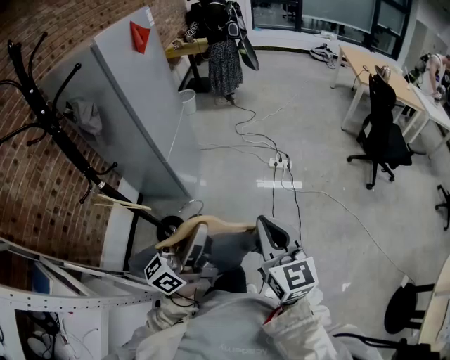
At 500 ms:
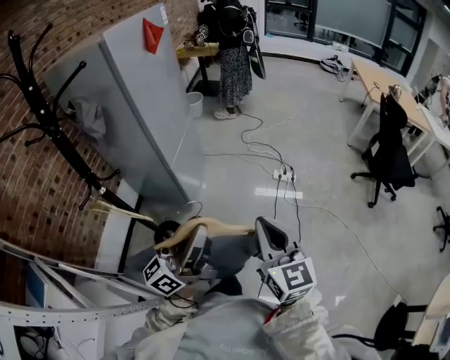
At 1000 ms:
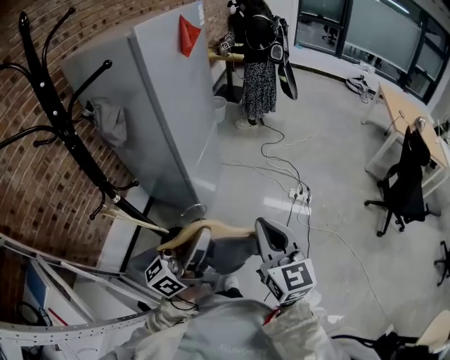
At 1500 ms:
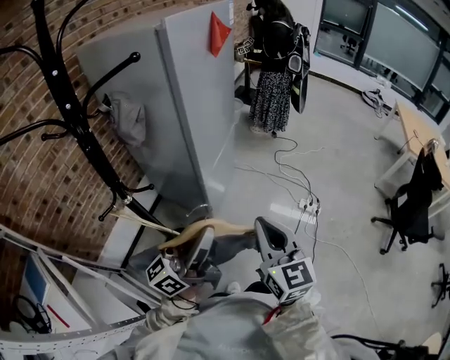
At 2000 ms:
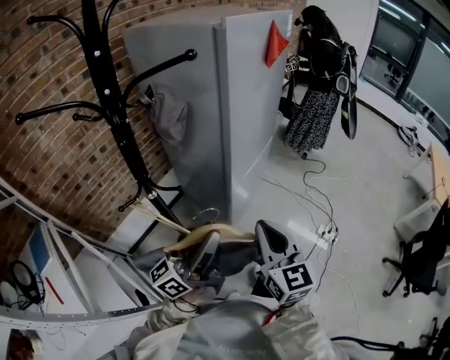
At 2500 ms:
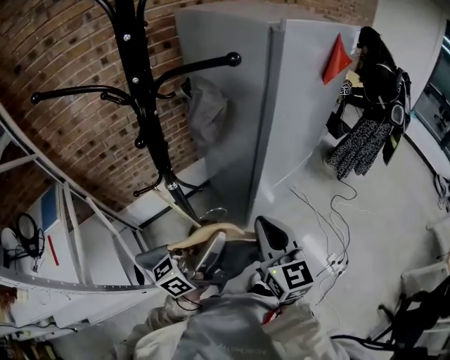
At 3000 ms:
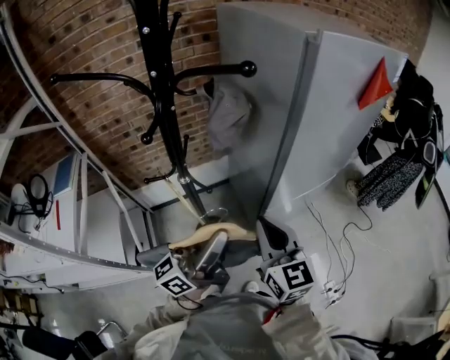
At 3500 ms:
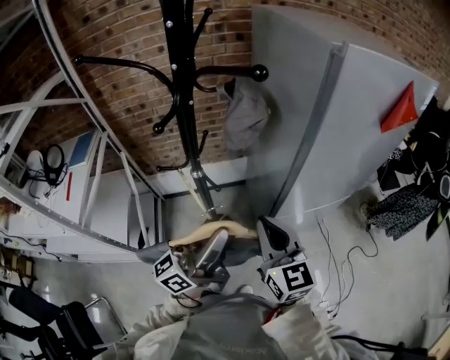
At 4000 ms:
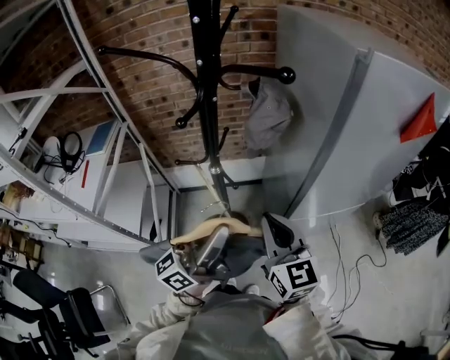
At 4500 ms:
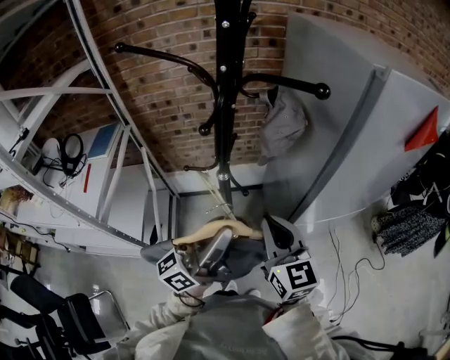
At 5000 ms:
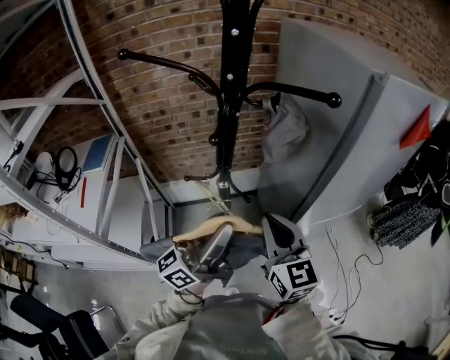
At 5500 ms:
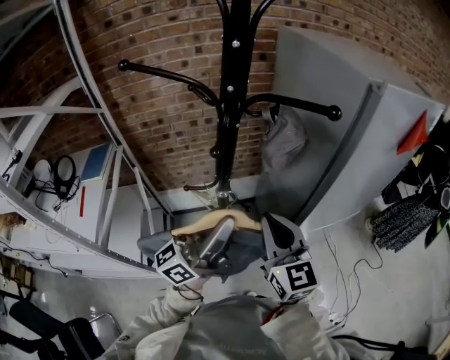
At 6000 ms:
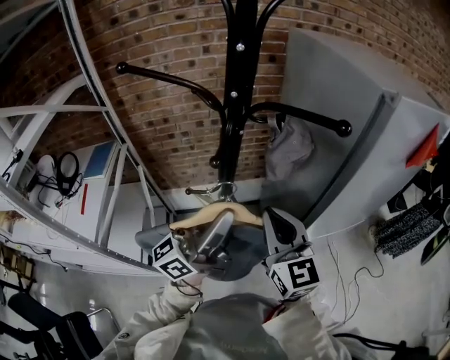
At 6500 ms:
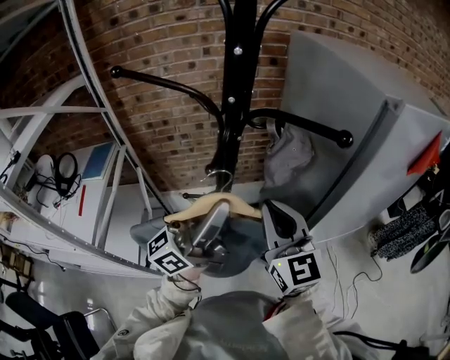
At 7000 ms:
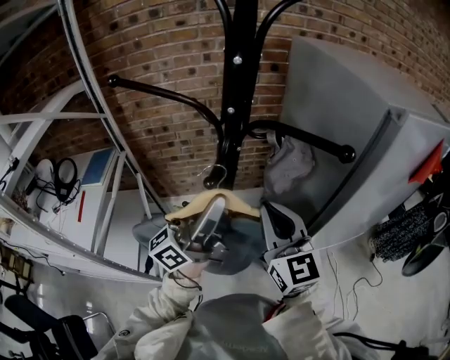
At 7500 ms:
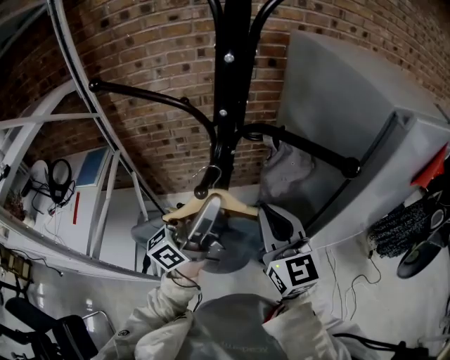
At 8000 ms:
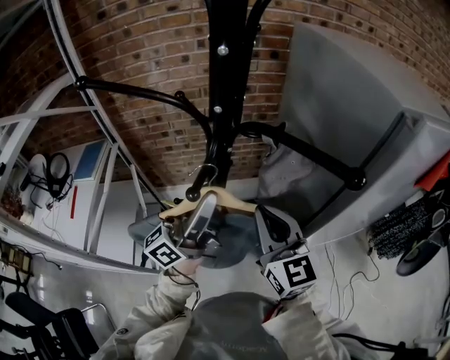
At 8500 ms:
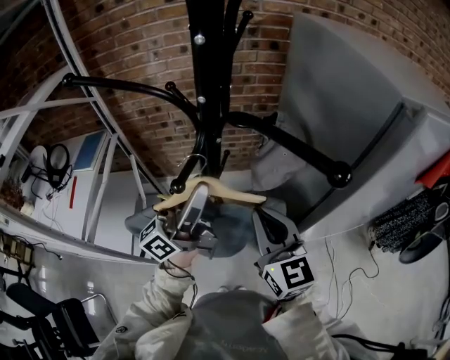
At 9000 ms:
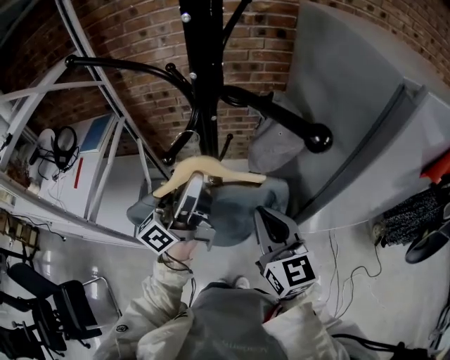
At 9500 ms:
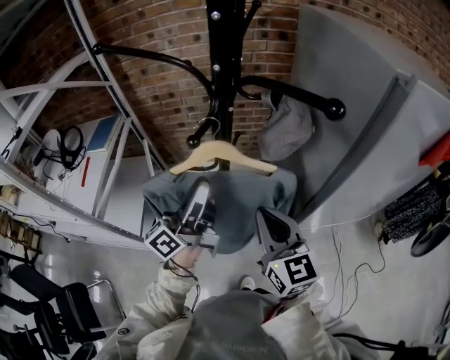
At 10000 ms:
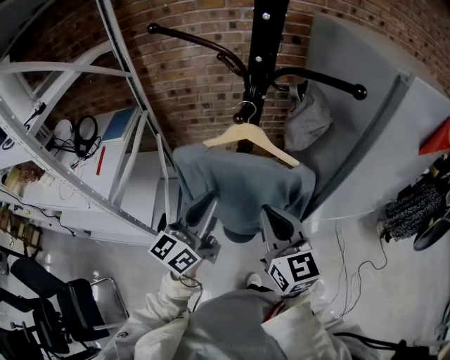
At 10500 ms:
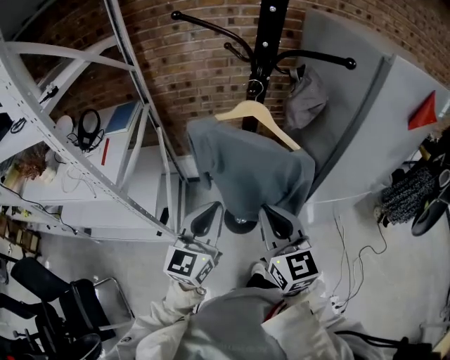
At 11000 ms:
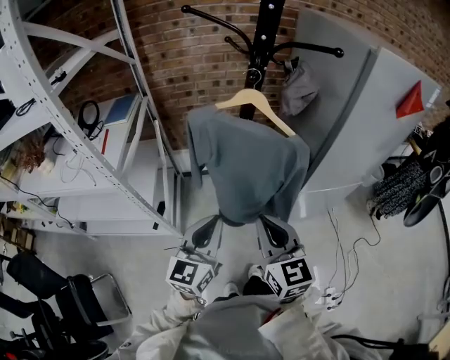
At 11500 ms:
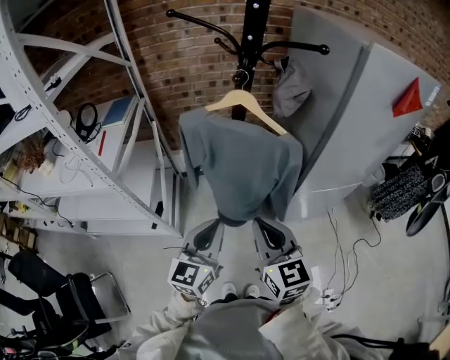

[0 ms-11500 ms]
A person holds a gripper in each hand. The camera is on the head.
0 ms to 2000 ms: The left gripper moves about 30 cm, and rotates some 30 degrees. The right gripper ends up approximately 40 cm from where it was, and rotates approximately 30 degrees.
2000 ms to 4000 ms: The right gripper ends up about 15 cm from where it was, and changes its angle by about 50 degrees, while the left gripper moves about 10 cm, and swivels roughly 50 degrees.
4000 ms to 6000 ms: The left gripper heads forward, to the left and upward, covering about 10 cm. Meanwhile the right gripper moves to the left, forward and upward, approximately 10 cm.
6000 ms to 7500 ms: Both grippers move forward, approximately 5 cm.
7500 ms to 9500 ms: The left gripper is displaced downward by approximately 5 cm; the right gripper is displaced backward and downward by some 10 cm.
9500 ms to 11500 ms: The two grippers go some 25 cm backward. The left gripper rotates some 50 degrees, and closes.

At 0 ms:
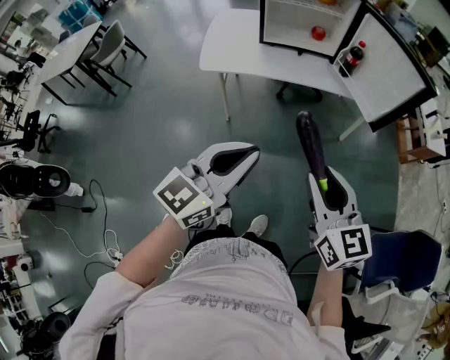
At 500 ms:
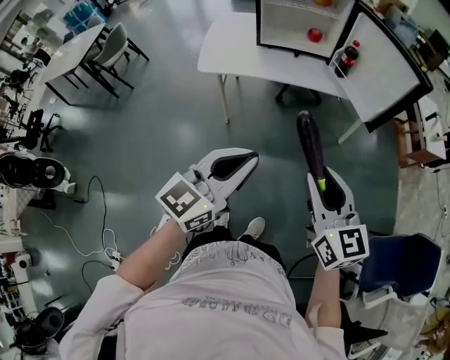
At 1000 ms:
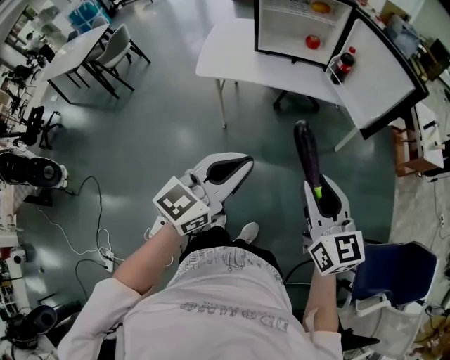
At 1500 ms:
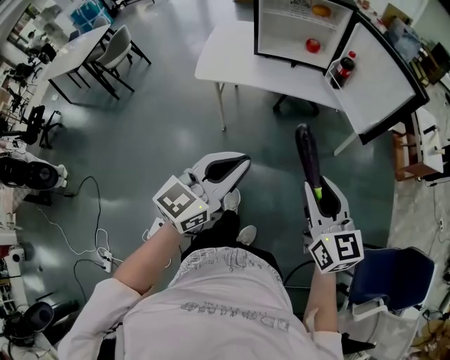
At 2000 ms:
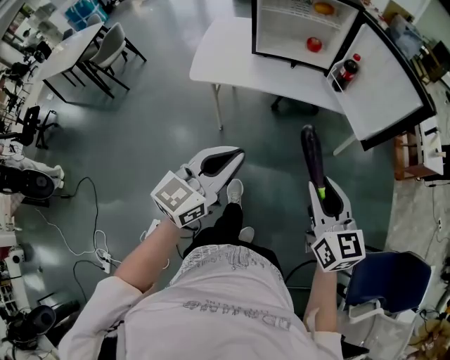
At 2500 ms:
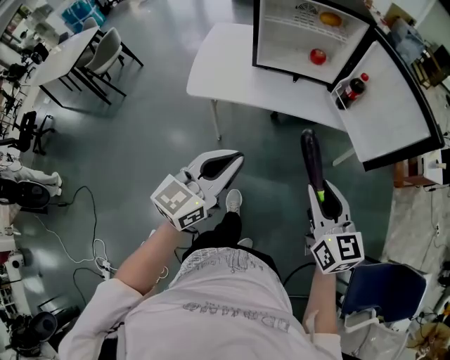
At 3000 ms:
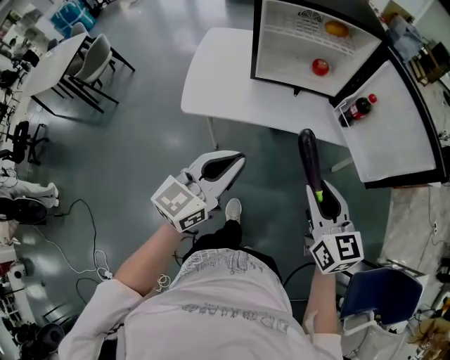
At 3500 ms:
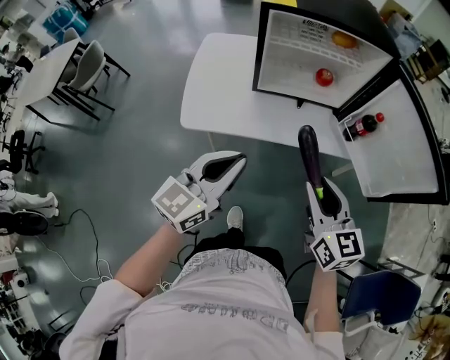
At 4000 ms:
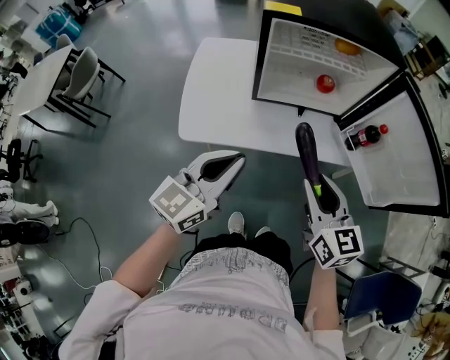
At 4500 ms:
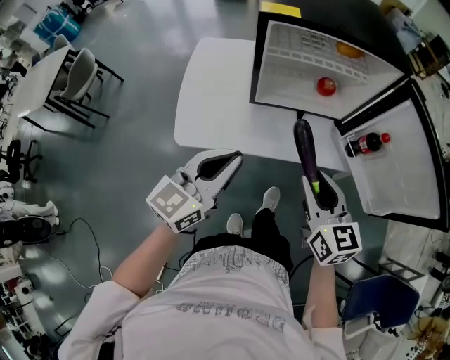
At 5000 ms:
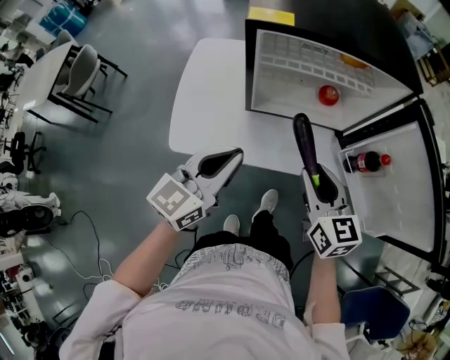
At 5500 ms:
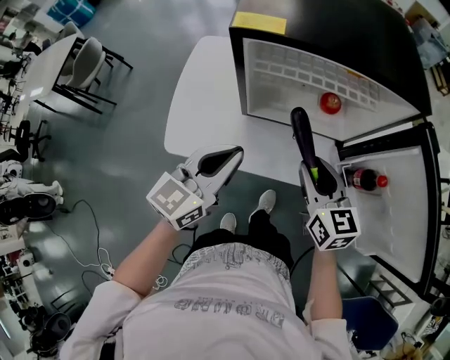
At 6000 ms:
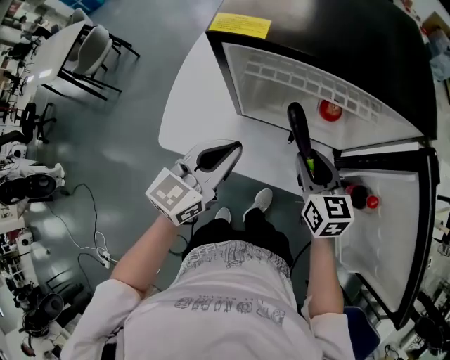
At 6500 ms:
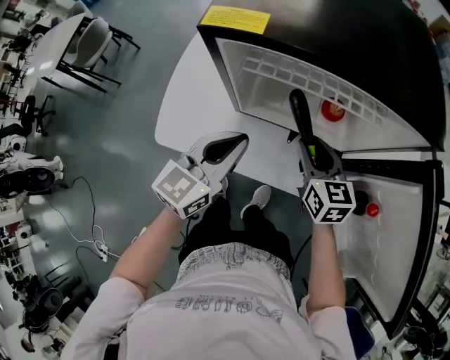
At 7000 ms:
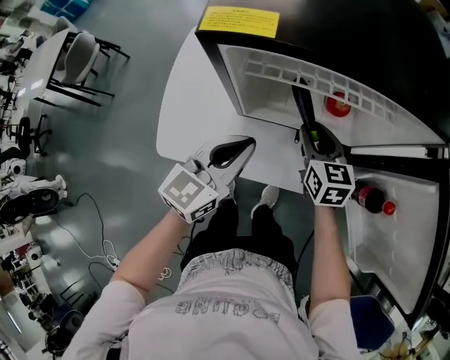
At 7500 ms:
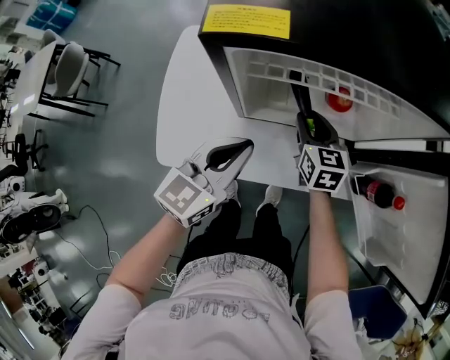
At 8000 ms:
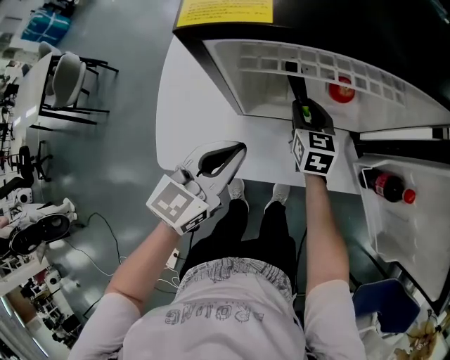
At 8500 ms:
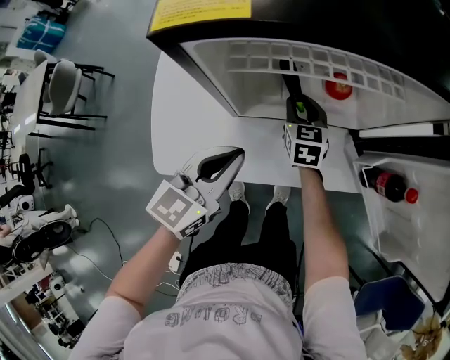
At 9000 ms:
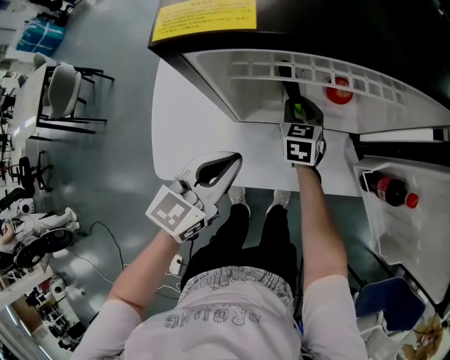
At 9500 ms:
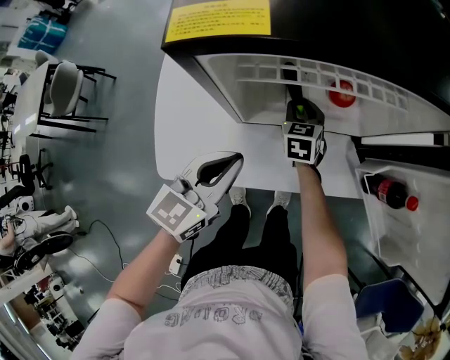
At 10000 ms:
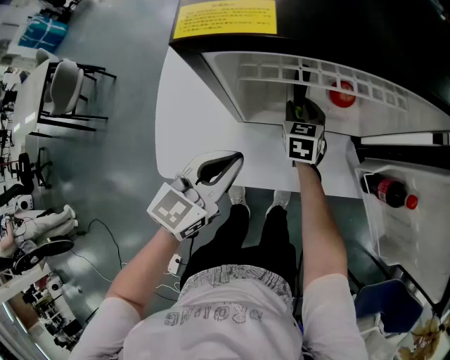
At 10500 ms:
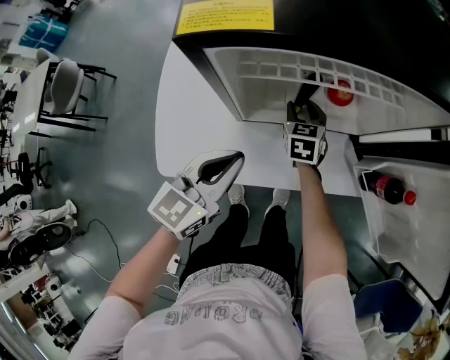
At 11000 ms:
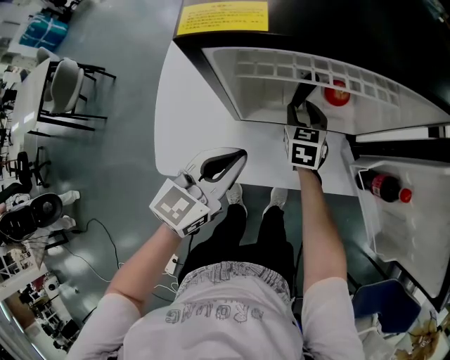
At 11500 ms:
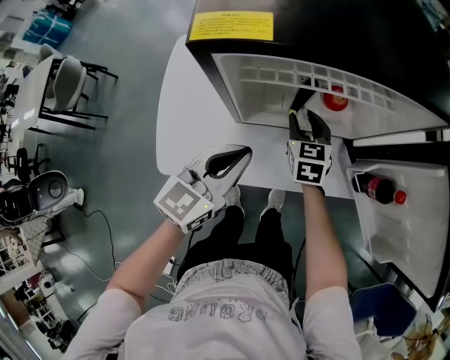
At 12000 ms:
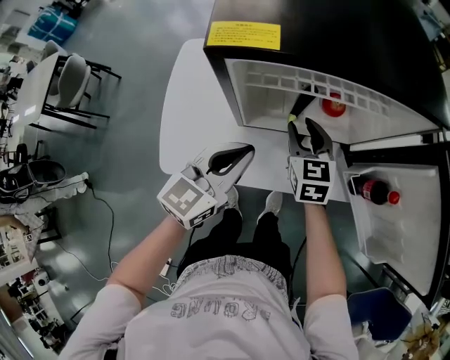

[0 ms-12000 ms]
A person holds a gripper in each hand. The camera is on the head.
0 ms to 2000 ms: The right gripper shifts some 10 cm to the right and forward. Meanwhile the left gripper shifts some 5 cm forward.
2000 ms to 4000 ms: Both grippers travel together forward and to the left, some 30 cm.
4000 ms to 6000 ms: The left gripper heads forward and to the right, covering about 20 cm. Meanwhile the right gripper moves forward and downward, approximately 25 cm.
6000 ms to 8000 ms: The right gripper goes approximately 20 cm forward, downward and to the left. The left gripper heads downward, covering approximately 5 cm.
8000 ms to 10000 ms: The right gripper travels downward by about 5 cm.
10000 ms to 12000 ms: The left gripper ends up about 5 cm from where it was; the right gripper travels upward and backward by about 15 cm.

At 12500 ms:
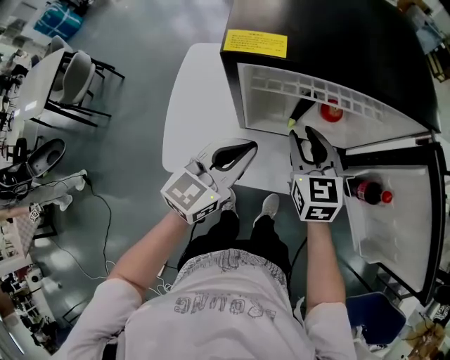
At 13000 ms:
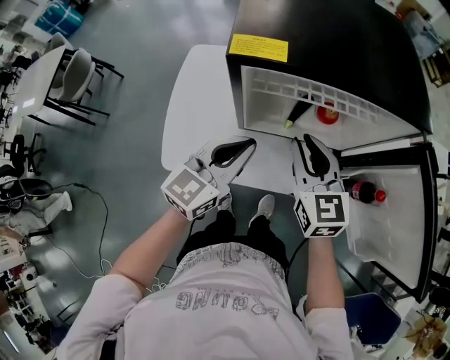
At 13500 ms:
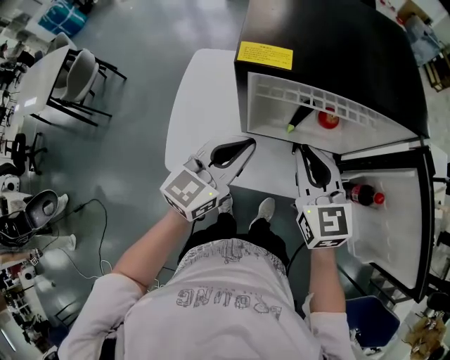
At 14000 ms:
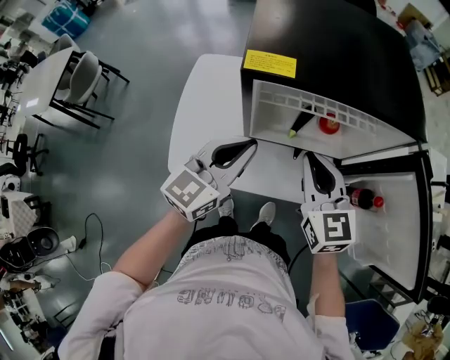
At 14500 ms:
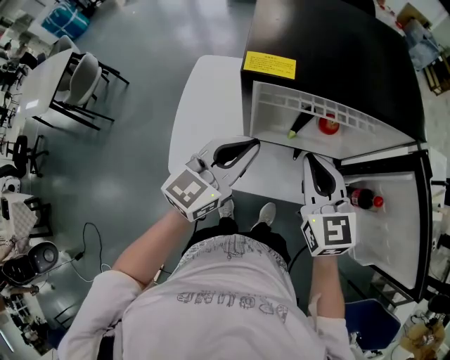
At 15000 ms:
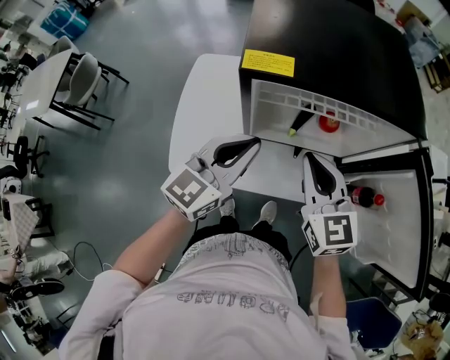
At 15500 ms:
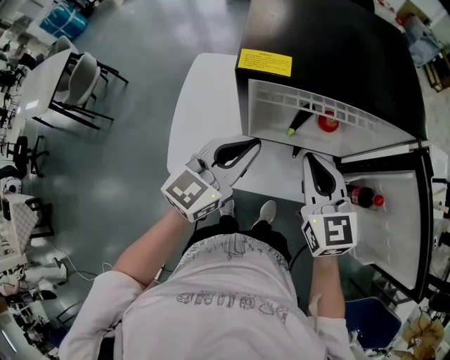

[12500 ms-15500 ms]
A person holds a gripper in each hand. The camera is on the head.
12500 ms to 14000 ms: The right gripper heads upward, covering about 10 cm, and closes. Meanwhile the left gripper shifts approximately 5 cm upward.
14000 ms to 15500 ms: The grippers move only a little.
